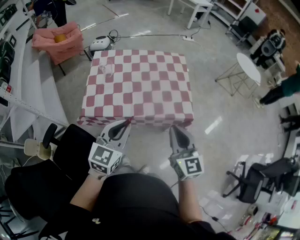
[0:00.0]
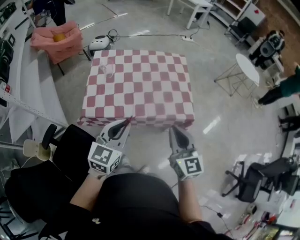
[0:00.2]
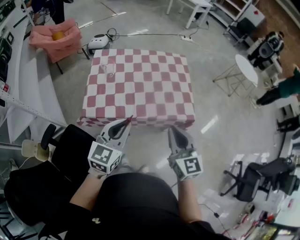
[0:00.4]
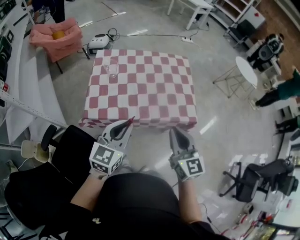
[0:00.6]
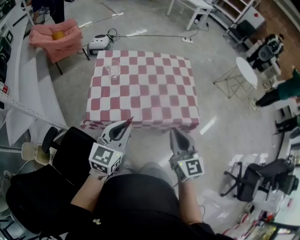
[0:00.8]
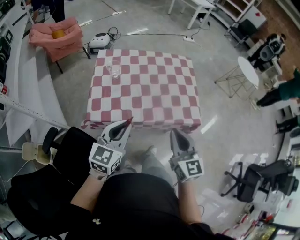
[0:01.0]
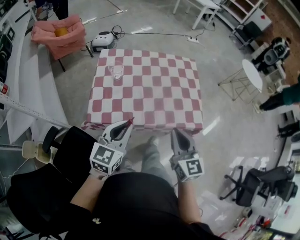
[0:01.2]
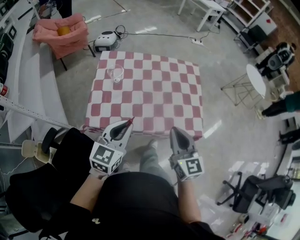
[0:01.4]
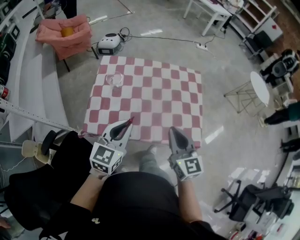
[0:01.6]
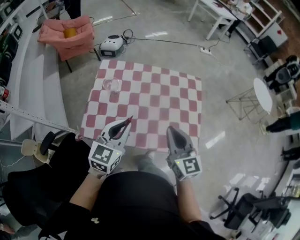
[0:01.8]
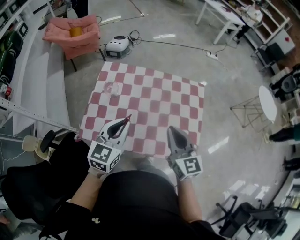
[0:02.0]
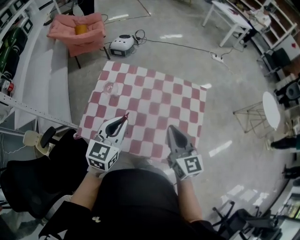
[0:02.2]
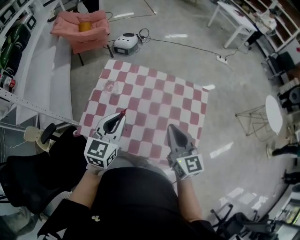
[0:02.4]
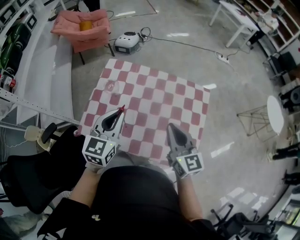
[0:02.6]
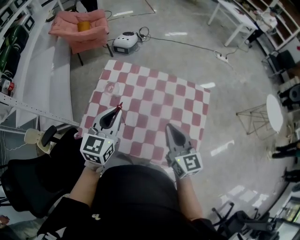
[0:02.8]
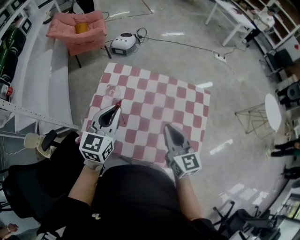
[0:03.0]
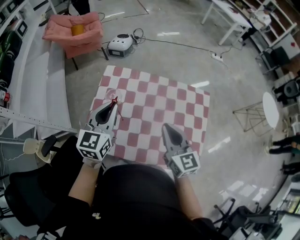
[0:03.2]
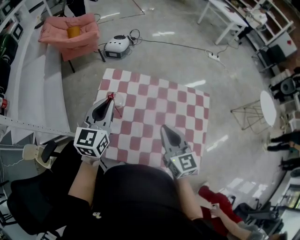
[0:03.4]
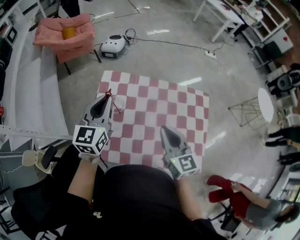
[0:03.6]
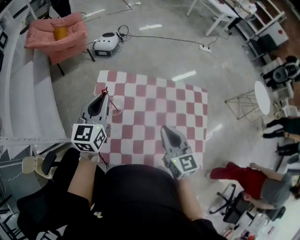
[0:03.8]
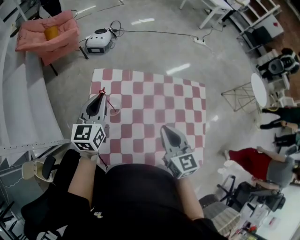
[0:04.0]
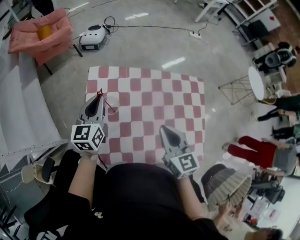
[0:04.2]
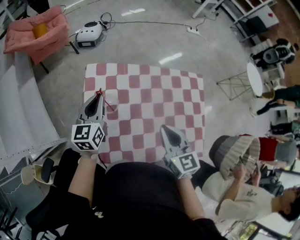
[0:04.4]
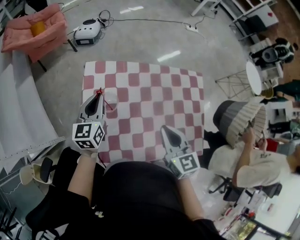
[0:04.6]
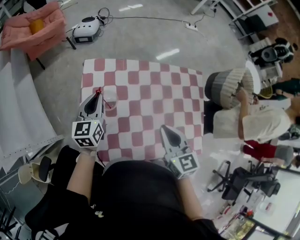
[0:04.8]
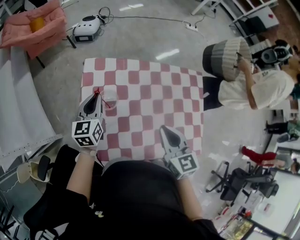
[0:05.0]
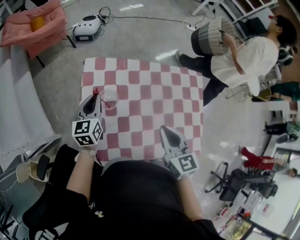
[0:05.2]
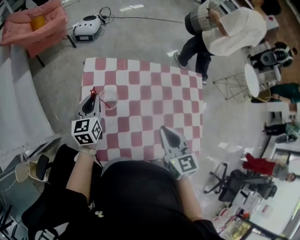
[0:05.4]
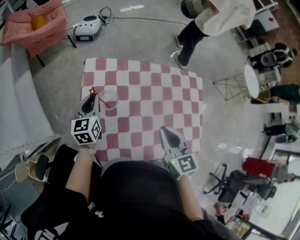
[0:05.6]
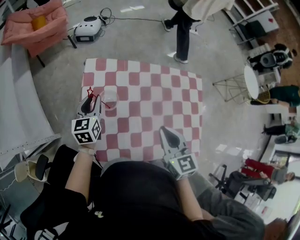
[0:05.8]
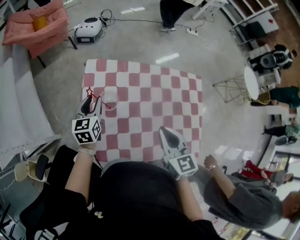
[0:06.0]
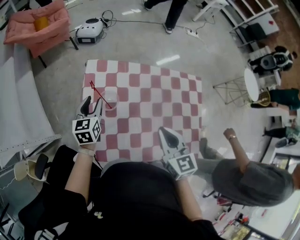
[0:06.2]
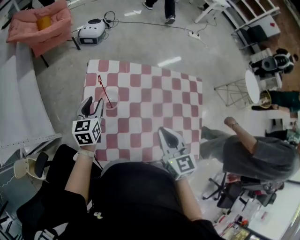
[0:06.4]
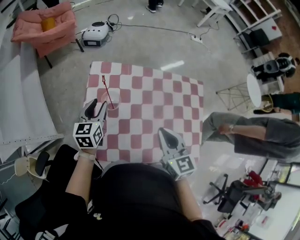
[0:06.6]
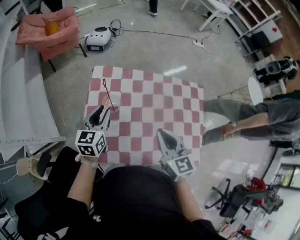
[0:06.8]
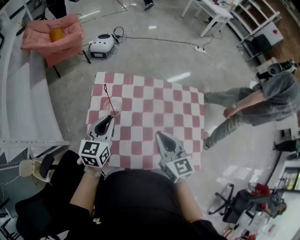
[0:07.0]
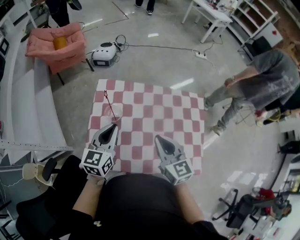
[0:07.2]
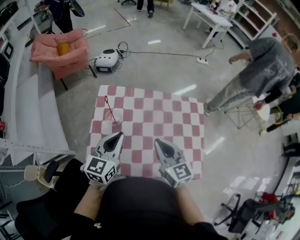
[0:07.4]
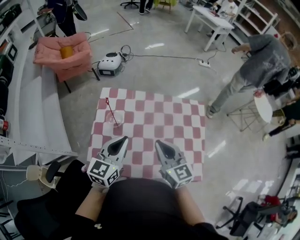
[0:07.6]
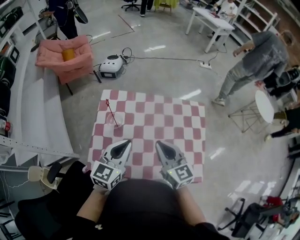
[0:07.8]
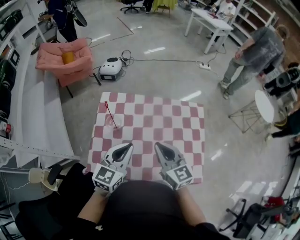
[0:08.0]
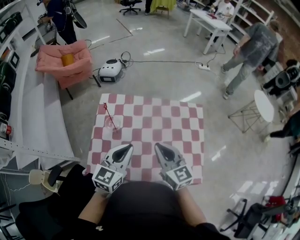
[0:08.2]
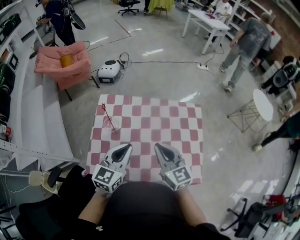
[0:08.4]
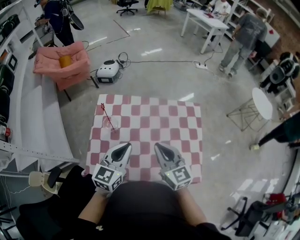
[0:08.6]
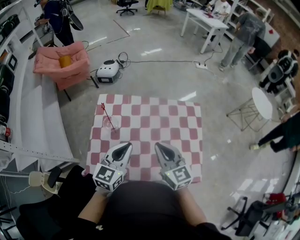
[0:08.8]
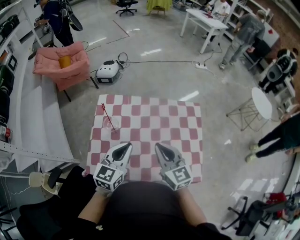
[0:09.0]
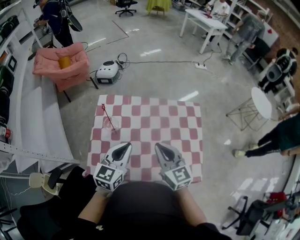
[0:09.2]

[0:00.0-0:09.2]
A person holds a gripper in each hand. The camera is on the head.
0:00.0 to 0:01.6: The grippers both shift forward and to the left by roughly 15 cm.
0:01.6 to 0:03.0: Both grippers travel together forward, roughly 15 cm.
0:03.0 to 0:04.6: The right gripper moves to the left and downward, roughly 10 cm, and turns by about 20 degrees. Meanwhile the left gripper shifts some 25 cm forward, downward and to the left.
0:04.6 to 0:06.2: The left gripper goes roughly 5 cm downward, and opens up.
0:06.2 to 0:07.6: The right gripper changes place by about 5 cm. Meanwhile the left gripper travels upward, to the right and backward by some 25 cm, turns by about 20 degrees, and closes up.
0:07.6 to 0:09.2: The grippers stay close to where they were, moving slightly.

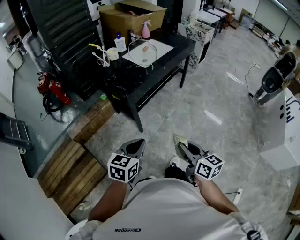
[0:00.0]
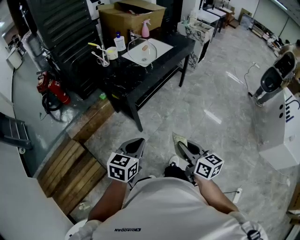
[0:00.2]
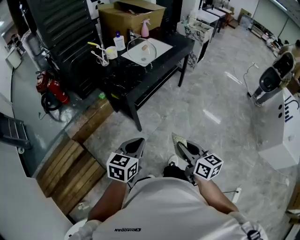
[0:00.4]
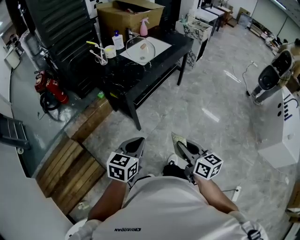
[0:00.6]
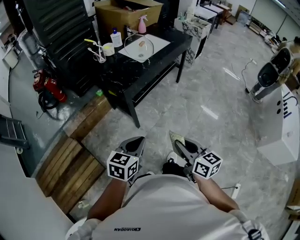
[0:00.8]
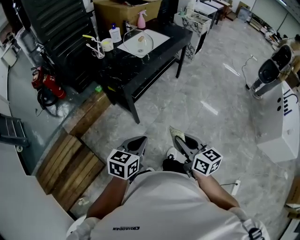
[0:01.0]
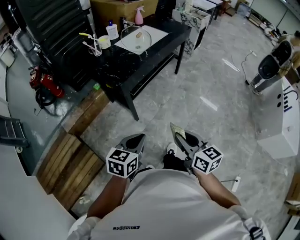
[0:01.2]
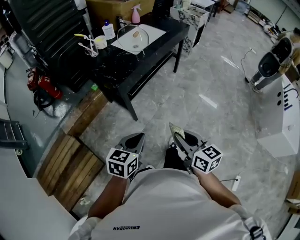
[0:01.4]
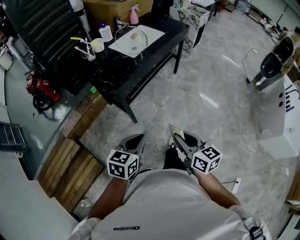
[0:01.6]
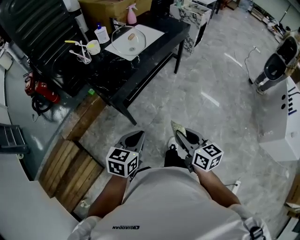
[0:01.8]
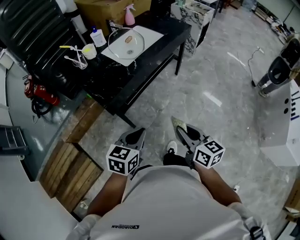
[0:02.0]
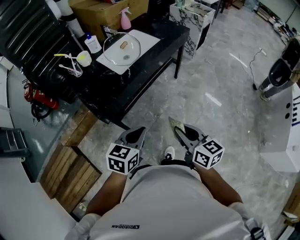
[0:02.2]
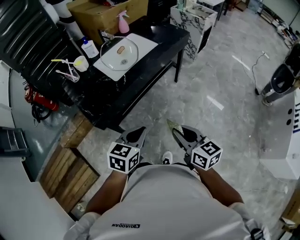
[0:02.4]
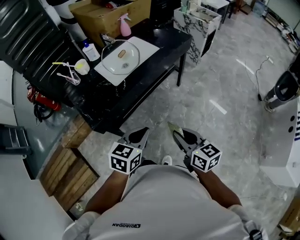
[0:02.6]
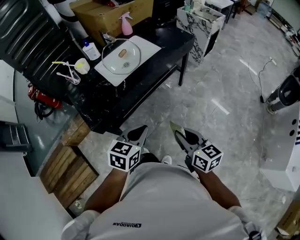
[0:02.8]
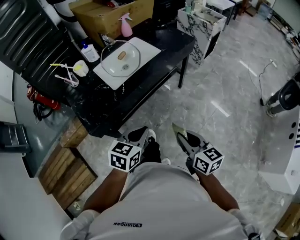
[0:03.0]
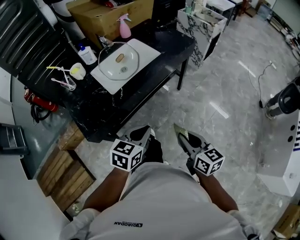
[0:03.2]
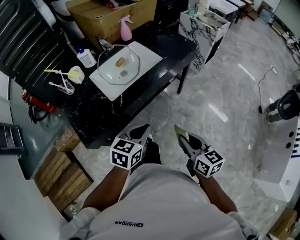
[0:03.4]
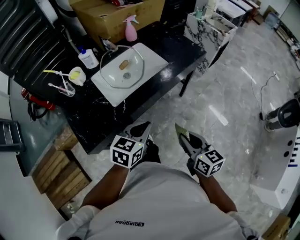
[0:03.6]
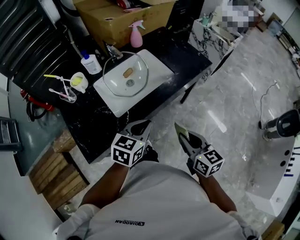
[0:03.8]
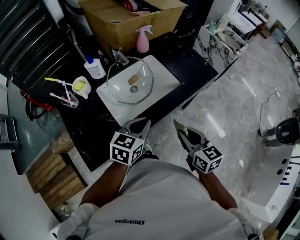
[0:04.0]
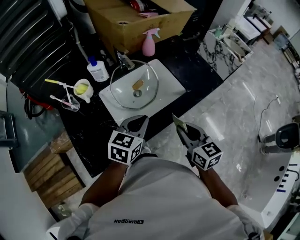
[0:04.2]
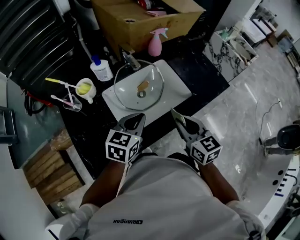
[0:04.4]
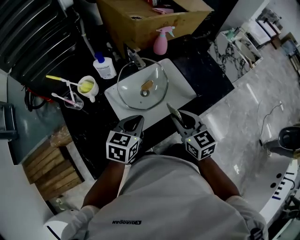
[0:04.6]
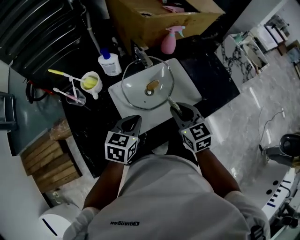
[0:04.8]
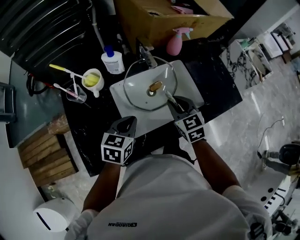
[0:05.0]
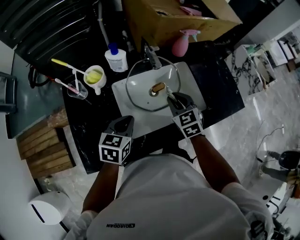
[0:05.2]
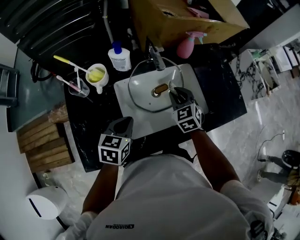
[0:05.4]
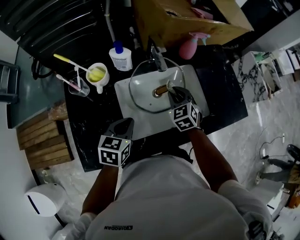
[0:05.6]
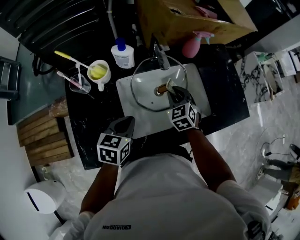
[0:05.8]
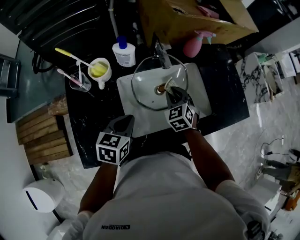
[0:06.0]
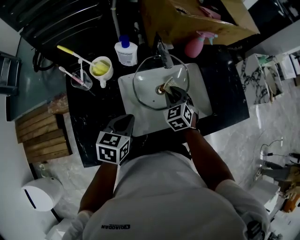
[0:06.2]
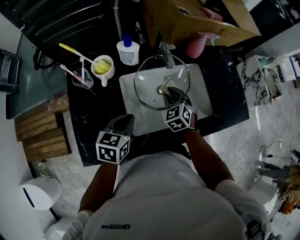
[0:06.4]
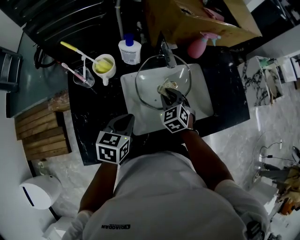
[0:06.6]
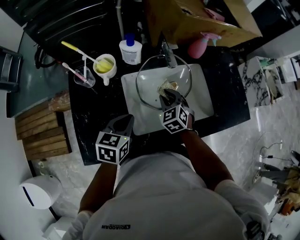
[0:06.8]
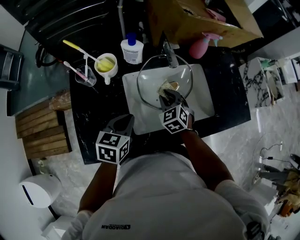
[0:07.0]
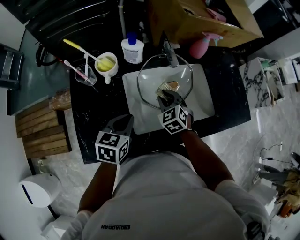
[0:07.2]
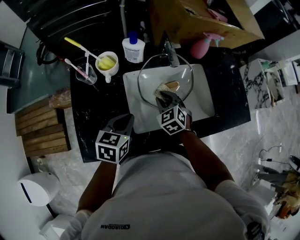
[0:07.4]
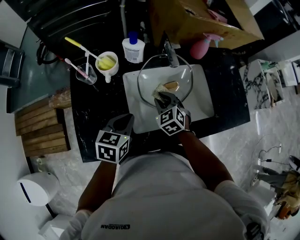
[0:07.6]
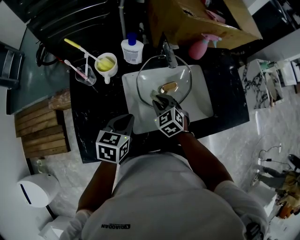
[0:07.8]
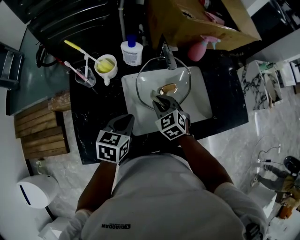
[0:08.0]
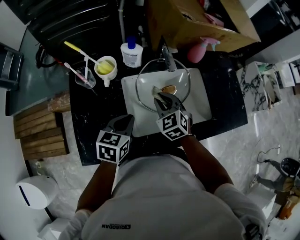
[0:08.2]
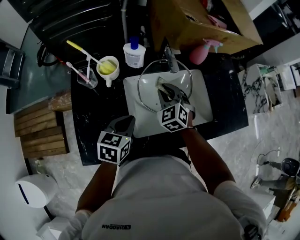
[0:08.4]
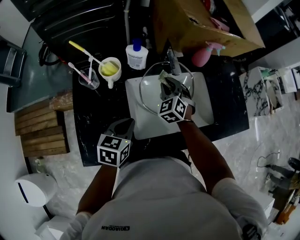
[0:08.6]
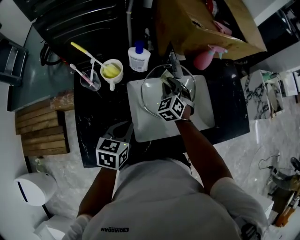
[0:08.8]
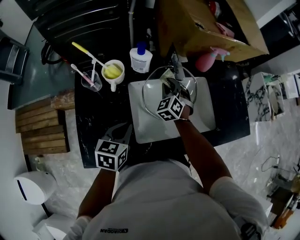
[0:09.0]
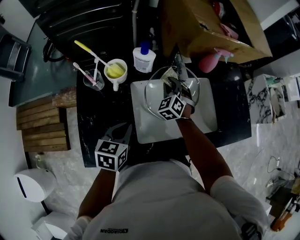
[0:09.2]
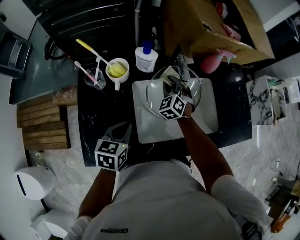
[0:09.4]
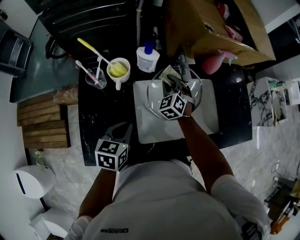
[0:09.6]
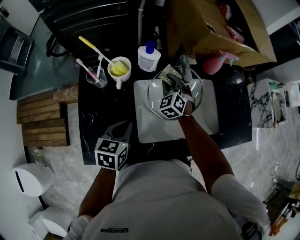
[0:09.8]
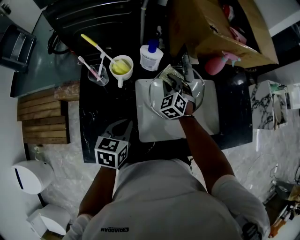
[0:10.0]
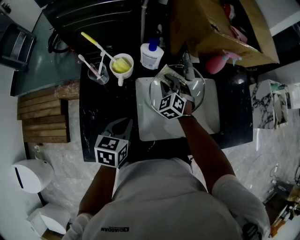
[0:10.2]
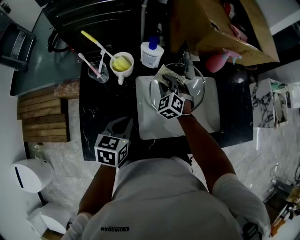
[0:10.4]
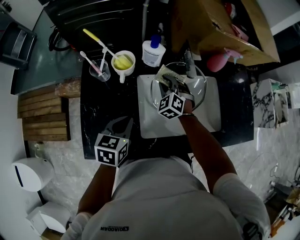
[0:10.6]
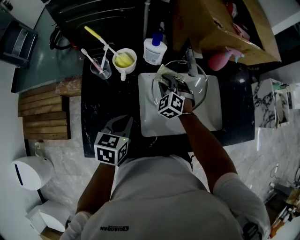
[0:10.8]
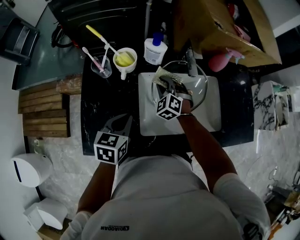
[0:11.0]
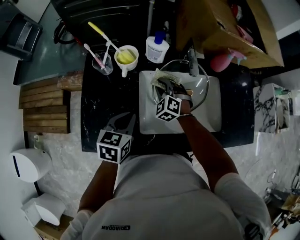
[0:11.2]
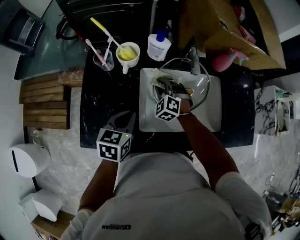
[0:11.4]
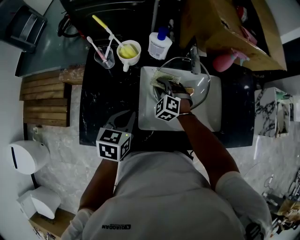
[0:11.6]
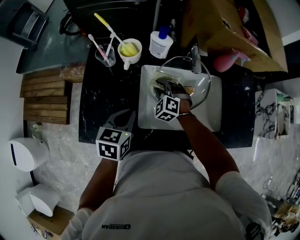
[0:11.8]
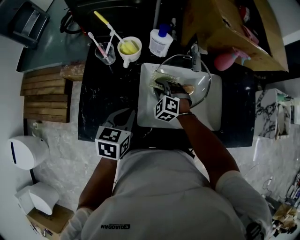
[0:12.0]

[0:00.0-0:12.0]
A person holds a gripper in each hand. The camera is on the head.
0:00.0 to 0:01.6: Both grippers travel together forward, roughly 5 cm.
0:01.6 to 0:03.0: Both grippers move forward and to the right, roughly 40 cm.
0:03.0 to 0:04.4: Both grippers move forward, approximately 40 cm. The right gripper swivels roughly 20 degrees.
0:04.4 to 0:06.0: The left gripper goes some 15 cm to the left and downward, and changes its angle by approximately 20 degrees. The right gripper goes some 25 cm forward, downward and to the left, and rotates roughly 40 degrees.
0:06.0 to 0:07.6: The right gripper goes about 5 cm to the left.
0:07.6 to 0:09.0: The right gripper heads forward, covering about 10 cm, and swivels some 20 degrees.
0:09.0 to 0:10.4: The right gripper is displaced to the left by some 5 cm.
0:10.4 to 0:12.0: The right gripper heads backward, covering approximately 10 cm, and rotates approximately 20 degrees.

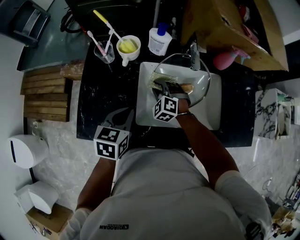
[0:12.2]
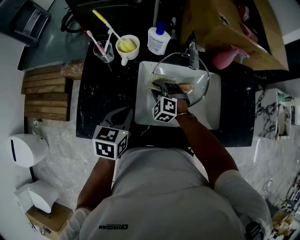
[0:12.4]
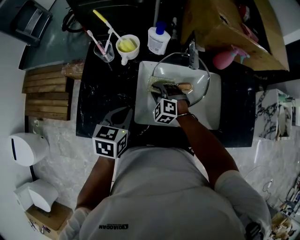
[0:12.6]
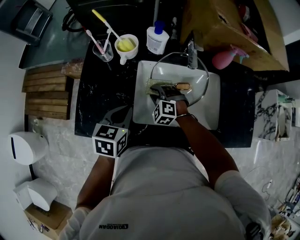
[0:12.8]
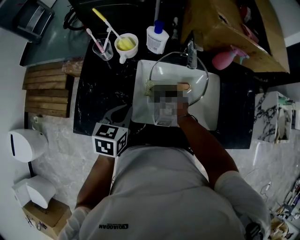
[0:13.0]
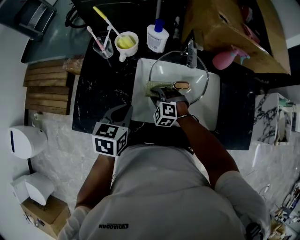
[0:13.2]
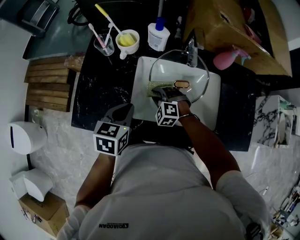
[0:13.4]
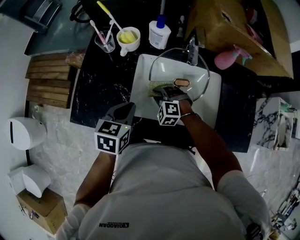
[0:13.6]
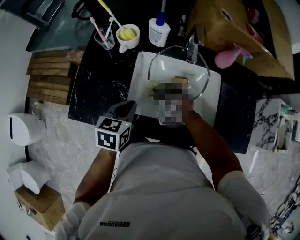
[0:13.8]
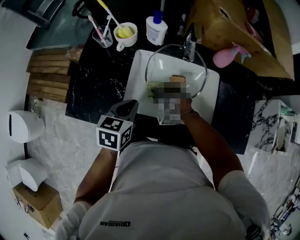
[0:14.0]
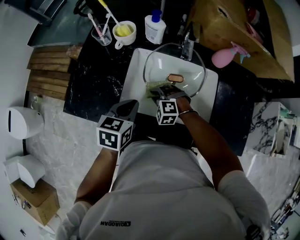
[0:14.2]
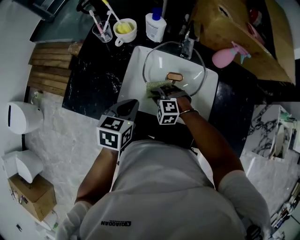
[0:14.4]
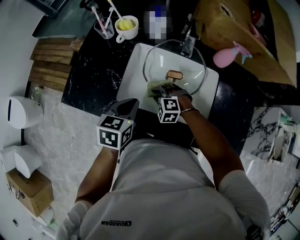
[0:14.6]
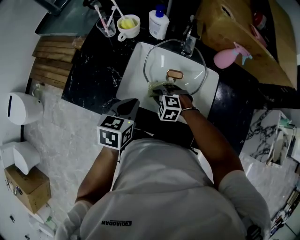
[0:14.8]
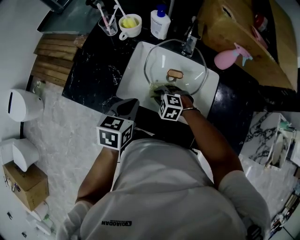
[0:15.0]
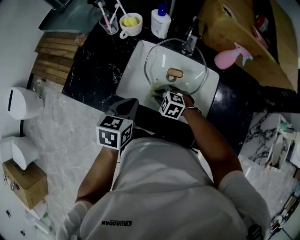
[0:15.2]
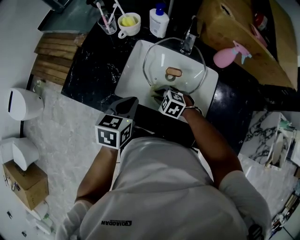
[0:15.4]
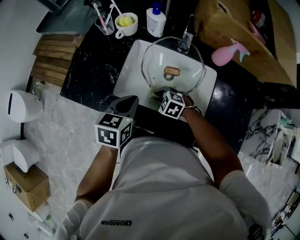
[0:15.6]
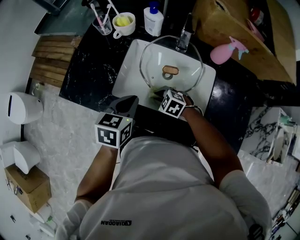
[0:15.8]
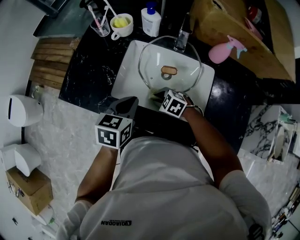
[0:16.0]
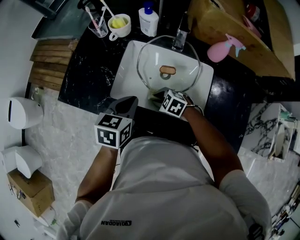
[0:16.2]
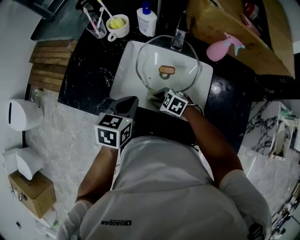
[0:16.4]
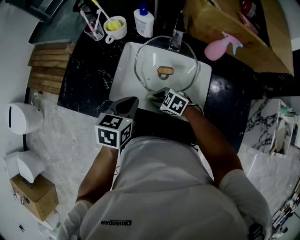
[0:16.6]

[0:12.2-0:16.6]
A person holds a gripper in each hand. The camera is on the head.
0:12.2 to 0:13.6: The right gripper moves backward, approximately 10 cm, and turns by roughly 20 degrees.
0:13.6 to 0:15.2: The left gripper goes approximately 10 cm backward and to the right, while the right gripper goes approximately 10 cm backward, and rotates roughly 20 degrees.
0:15.2 to 0:16.6: The right gripper swivels roughly 20 degrees.
